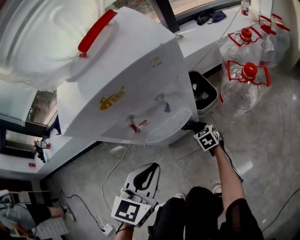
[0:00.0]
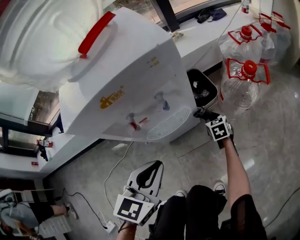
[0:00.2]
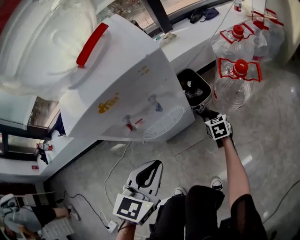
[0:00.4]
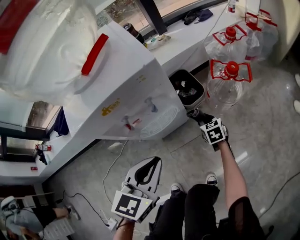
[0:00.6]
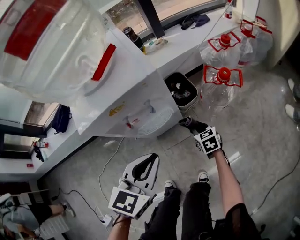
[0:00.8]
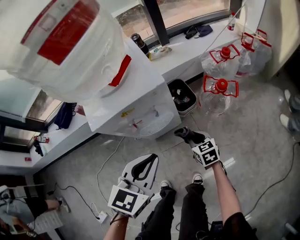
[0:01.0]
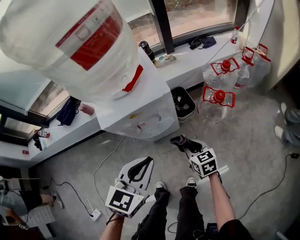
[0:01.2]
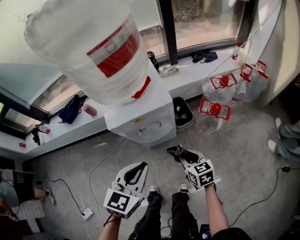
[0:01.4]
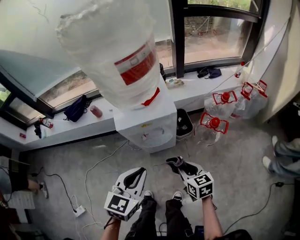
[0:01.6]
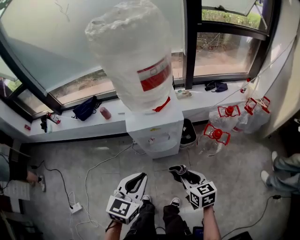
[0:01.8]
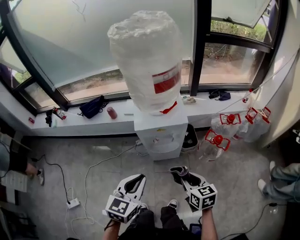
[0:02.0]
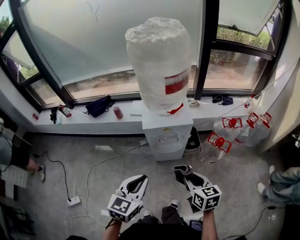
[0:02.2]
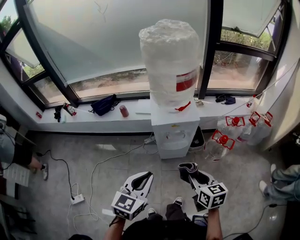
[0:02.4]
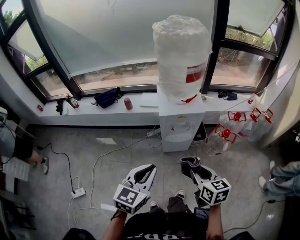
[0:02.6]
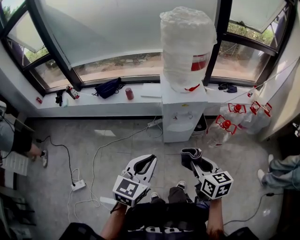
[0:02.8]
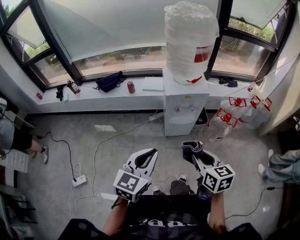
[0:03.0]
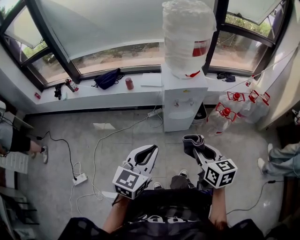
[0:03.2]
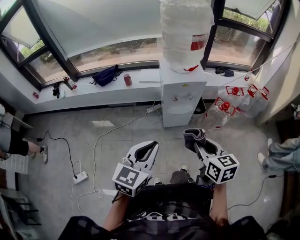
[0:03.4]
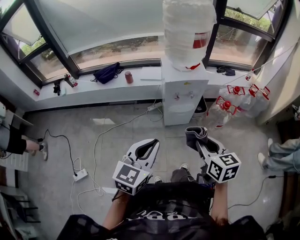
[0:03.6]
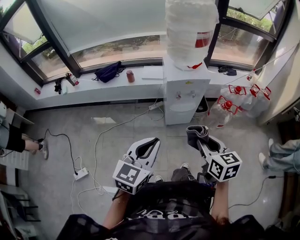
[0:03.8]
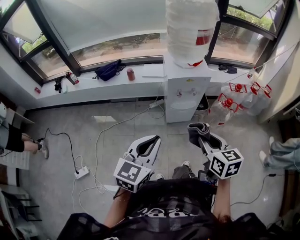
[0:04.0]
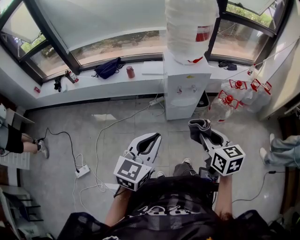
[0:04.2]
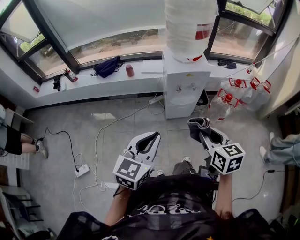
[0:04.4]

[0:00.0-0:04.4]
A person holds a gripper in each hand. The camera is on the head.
0:00.0 to 0:01.4: The right gripper heads upward, covering roughly 40 cm. The left gripper goes approximately 25 cm upward.
0:01.4 to 0:03.0: The left gripper goes some 35 cm backward, to the left and upward; the right gripper heads upward, backward and to the left, covering roughly 40 cm.
0:03.0 to 0:04.4: The grippers move only a little.

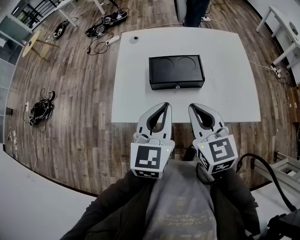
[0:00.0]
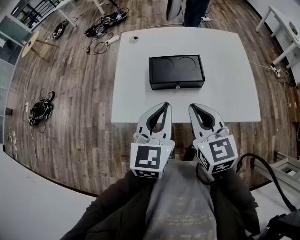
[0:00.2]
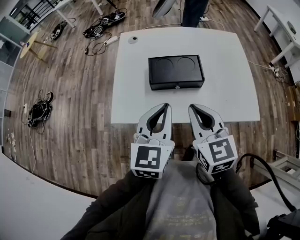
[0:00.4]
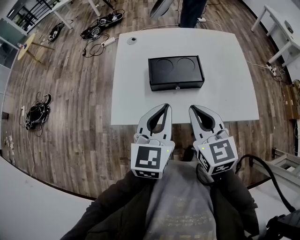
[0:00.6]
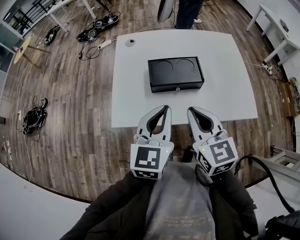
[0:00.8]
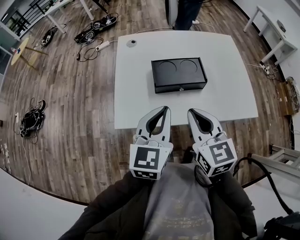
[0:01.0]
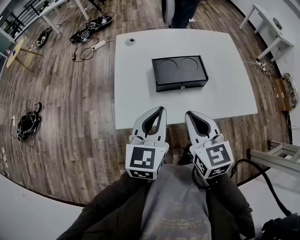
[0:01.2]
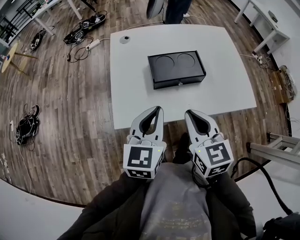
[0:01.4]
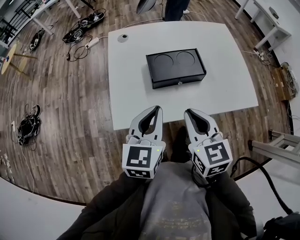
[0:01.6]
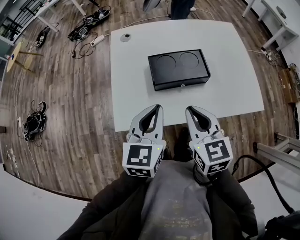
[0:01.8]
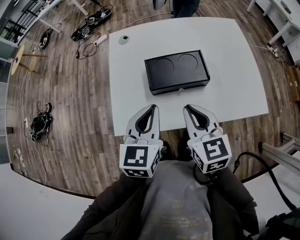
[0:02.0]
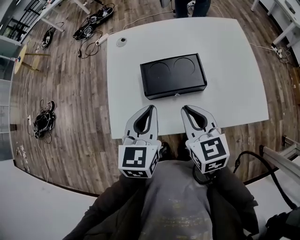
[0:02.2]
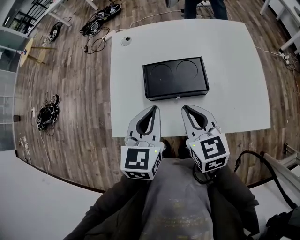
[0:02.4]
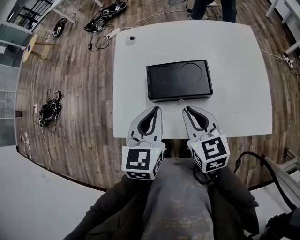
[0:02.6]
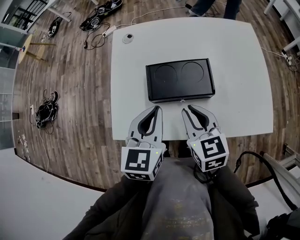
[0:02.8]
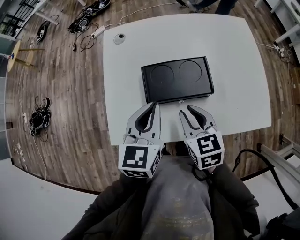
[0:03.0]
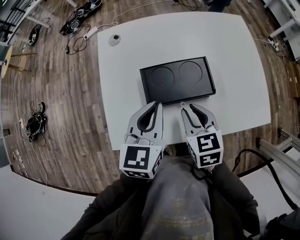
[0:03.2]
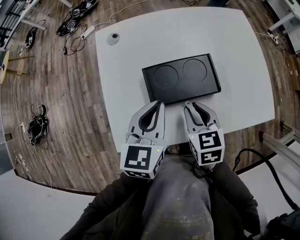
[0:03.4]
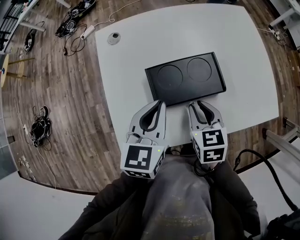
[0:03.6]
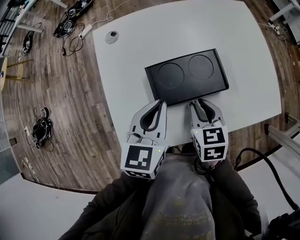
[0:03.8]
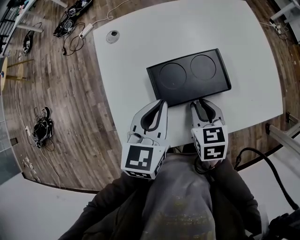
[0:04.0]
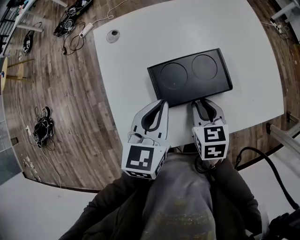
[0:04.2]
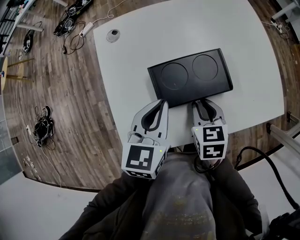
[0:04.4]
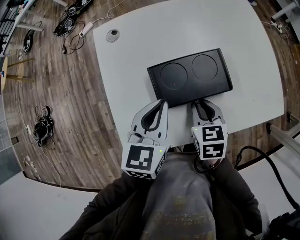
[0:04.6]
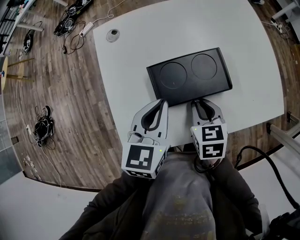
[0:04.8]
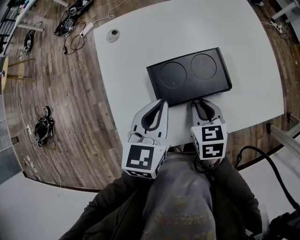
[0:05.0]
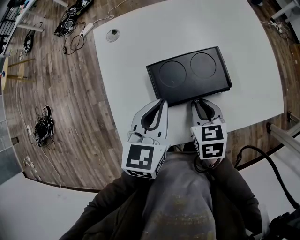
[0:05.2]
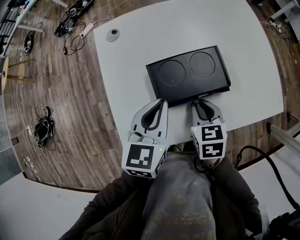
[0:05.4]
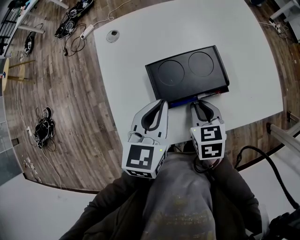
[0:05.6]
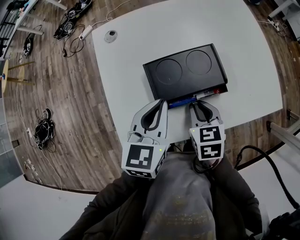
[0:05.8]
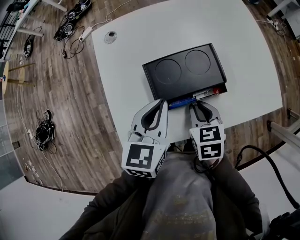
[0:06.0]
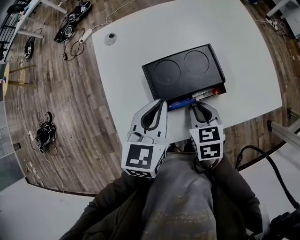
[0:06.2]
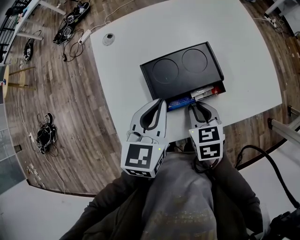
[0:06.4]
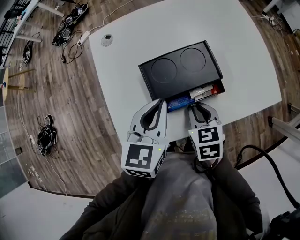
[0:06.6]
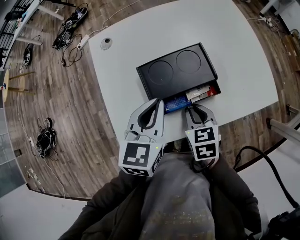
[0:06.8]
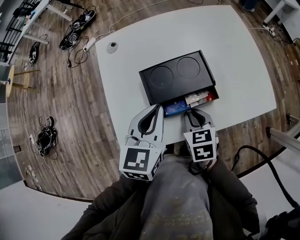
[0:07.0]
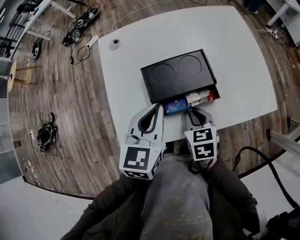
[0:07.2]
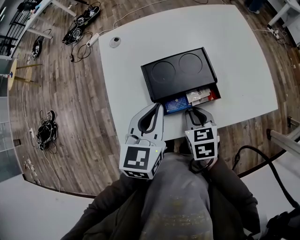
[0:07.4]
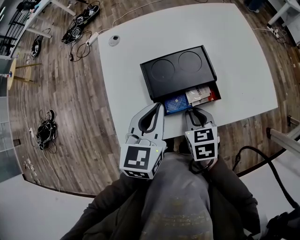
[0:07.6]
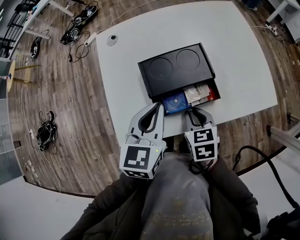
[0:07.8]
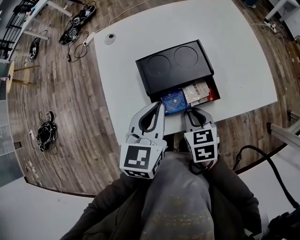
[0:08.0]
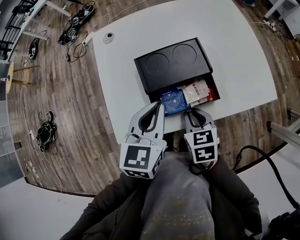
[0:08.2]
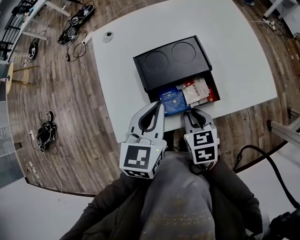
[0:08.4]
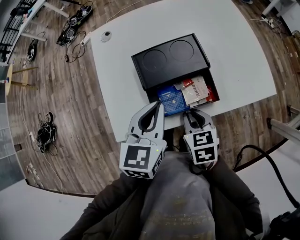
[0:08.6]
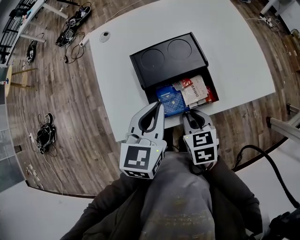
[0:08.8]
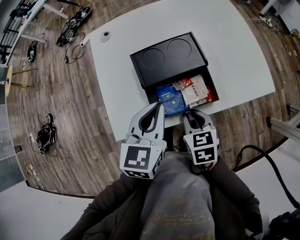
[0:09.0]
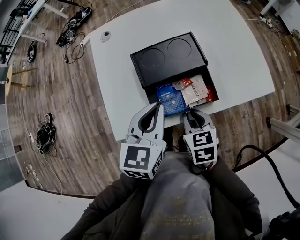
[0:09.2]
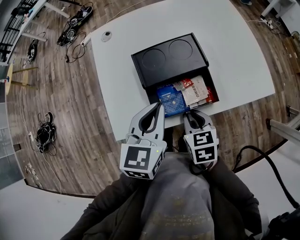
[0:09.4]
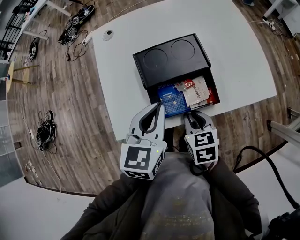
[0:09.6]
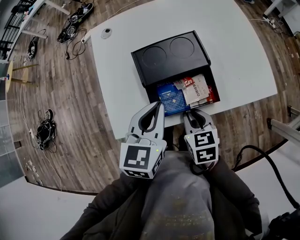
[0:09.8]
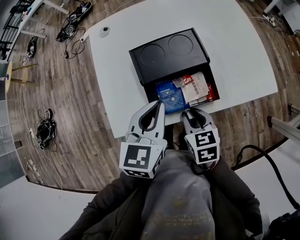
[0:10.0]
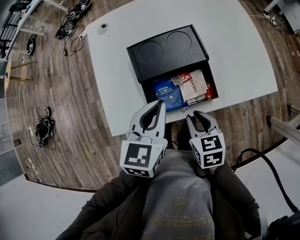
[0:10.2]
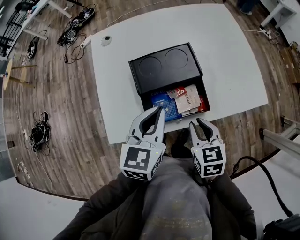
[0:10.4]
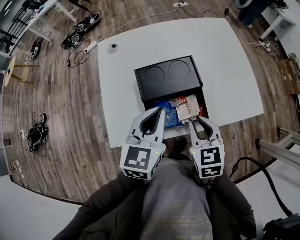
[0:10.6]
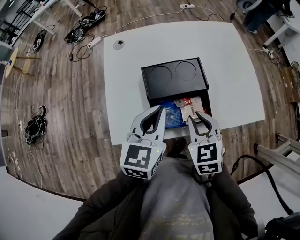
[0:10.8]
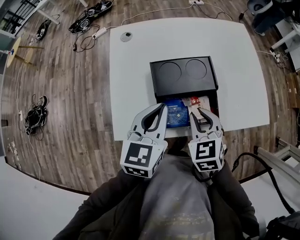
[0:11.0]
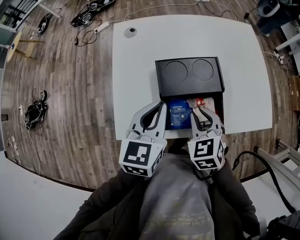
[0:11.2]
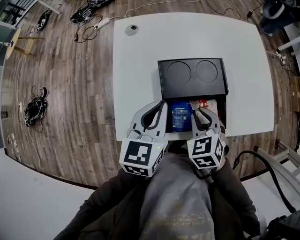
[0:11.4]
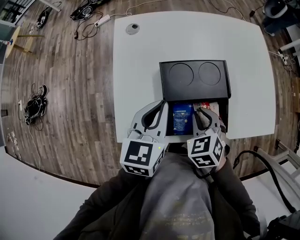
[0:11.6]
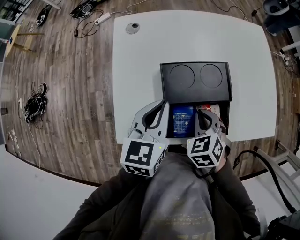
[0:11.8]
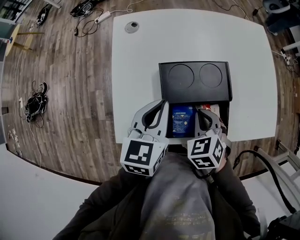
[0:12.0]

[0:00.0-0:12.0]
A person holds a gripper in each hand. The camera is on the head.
0:00.0 to 0:01.6: The two grippers go roughly 5 cm to the left.
0:01.6 to 0:03.0: The left gripper shifts some 10 cm forward. The right gripper travels forward and downward by about 15 cm.
0:03.0 to 0:04.4: The right gripper is displaced downward by approximately 5 cm, and turns by some 20 degrees.
0:04.4 to 0:07.6: The grippers stay close to where they were, moving slightly.
0:07.6 to 0:09.0: The right gripper moves backward, some 5 cm.
0:09.0 to 0:10.4: The right gripper is displaced to the right by roughly 5 cm.
0:10.4 to 0:12.0: The left gripper heads to the left and forward, covering some 10 cm. The right gripper travels forward and to the left by some 10 cm, and rotates approximately 40 degrees.

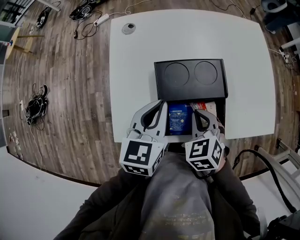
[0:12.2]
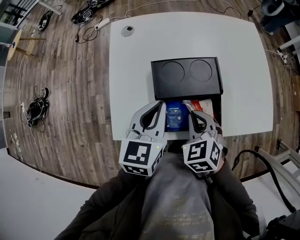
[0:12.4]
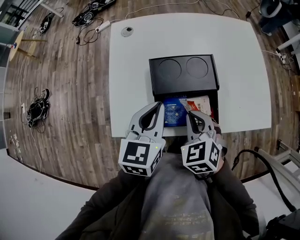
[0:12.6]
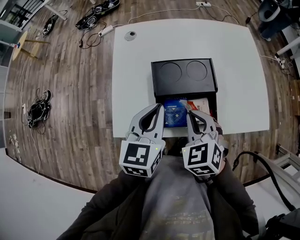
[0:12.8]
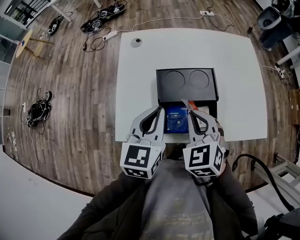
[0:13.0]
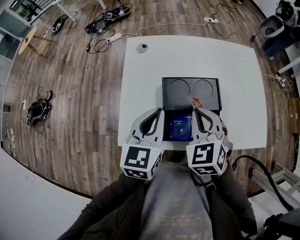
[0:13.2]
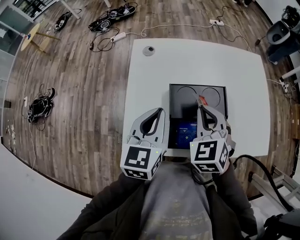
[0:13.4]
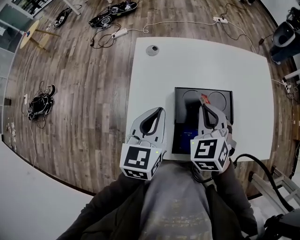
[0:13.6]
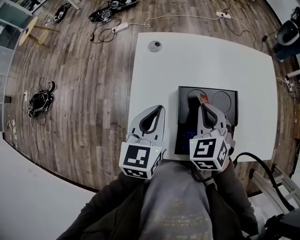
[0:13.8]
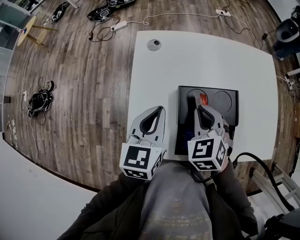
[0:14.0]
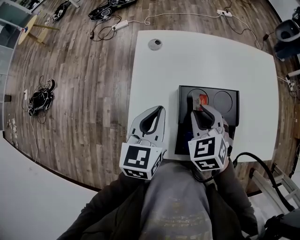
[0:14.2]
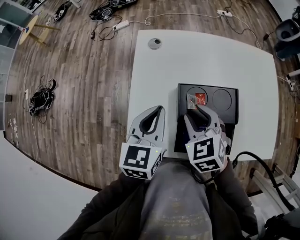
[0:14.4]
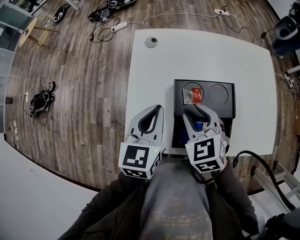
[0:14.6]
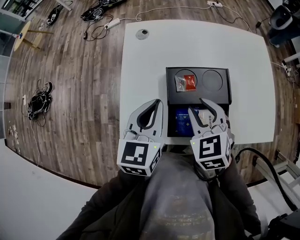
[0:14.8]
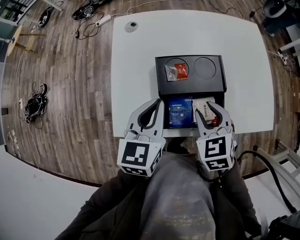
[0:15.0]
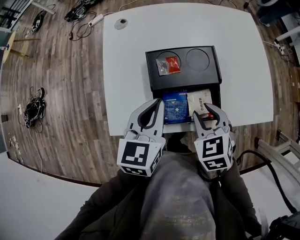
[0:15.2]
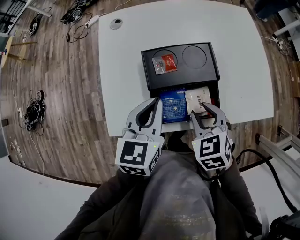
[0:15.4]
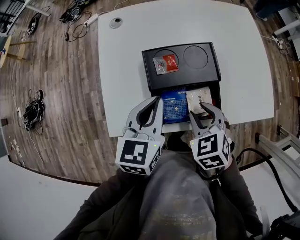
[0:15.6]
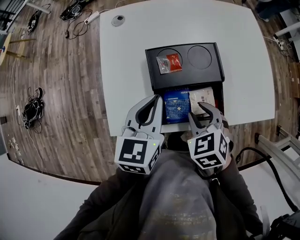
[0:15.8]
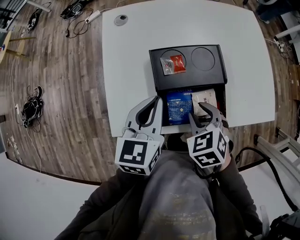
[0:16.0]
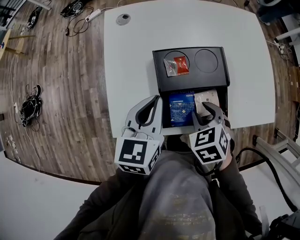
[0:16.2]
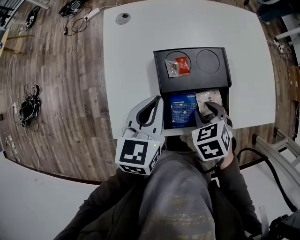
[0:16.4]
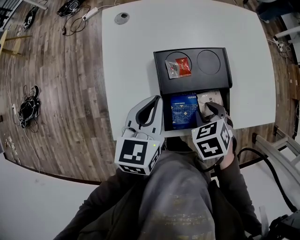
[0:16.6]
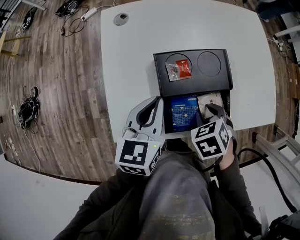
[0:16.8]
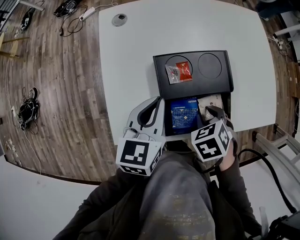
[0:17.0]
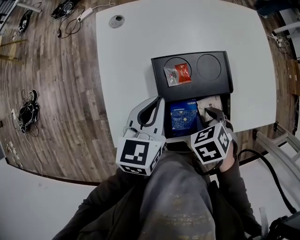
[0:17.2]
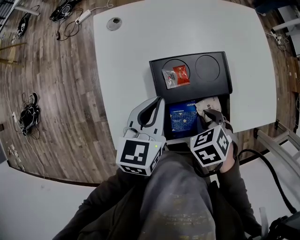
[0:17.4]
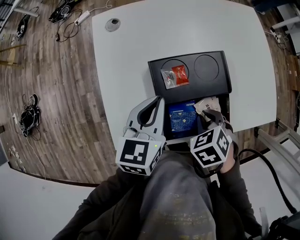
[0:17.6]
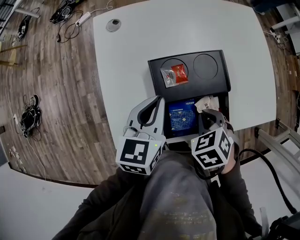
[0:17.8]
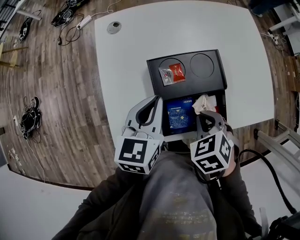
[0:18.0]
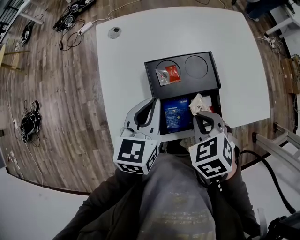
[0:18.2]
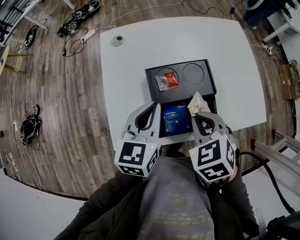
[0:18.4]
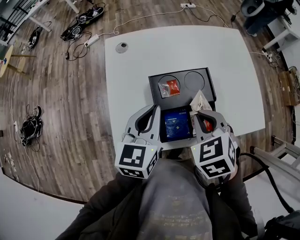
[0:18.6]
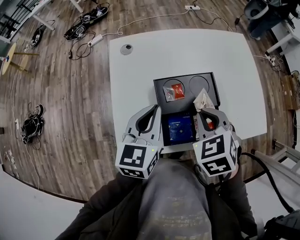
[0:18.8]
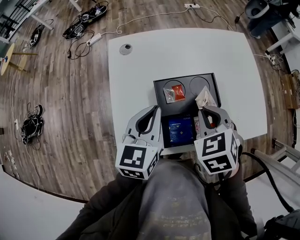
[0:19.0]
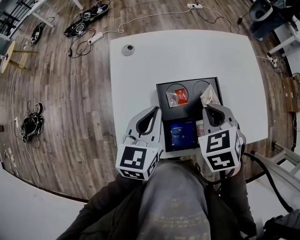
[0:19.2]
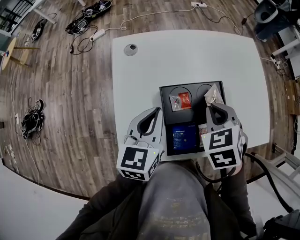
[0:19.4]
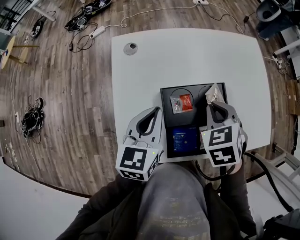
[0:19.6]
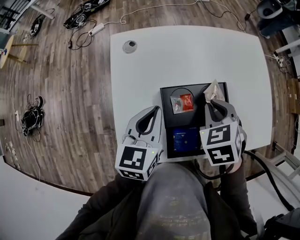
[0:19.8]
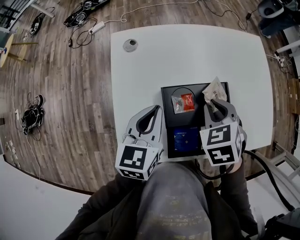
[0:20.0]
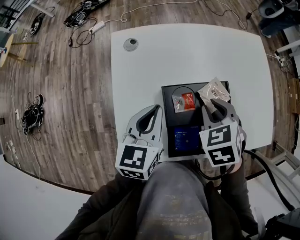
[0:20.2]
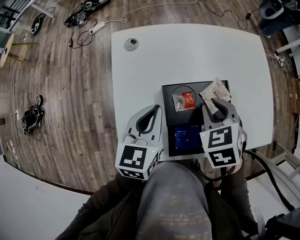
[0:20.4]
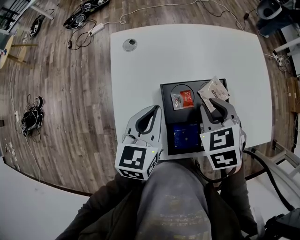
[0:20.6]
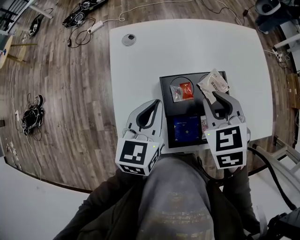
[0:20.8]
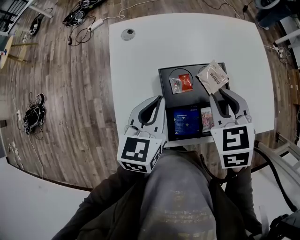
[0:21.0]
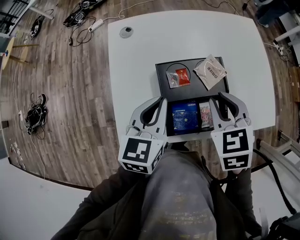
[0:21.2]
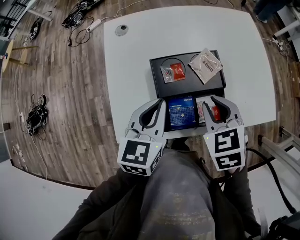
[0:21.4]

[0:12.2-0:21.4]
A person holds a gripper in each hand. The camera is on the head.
0:12.2 to 0:13.8: The right gripper travels forward, upward and to the left by roughly 15 cm. Meanwhile the left gripper is displaced to the left by approximately 10 cm.
0:13.8 to 0:15.2: The left gripper shifts approximately 10 cm to the right and backward; the right gripper shifts about 15 cm backward, to the right and downward, and opens its fingers.
0:15.2 to 0:16.8: The right gripper changes its angle by about 30 degrees.
0:16.8 to 0:18.4: The right gripper travels upward by some 10 cm, and closes up.
0:18.4 to 0:19.8: The left gripper heads forward, covering some 5 cm. The right gripper goes roughly 15 cm forward.
0:19.8 to 0:21.4: The two grippers go approximately 10 cm backward.
